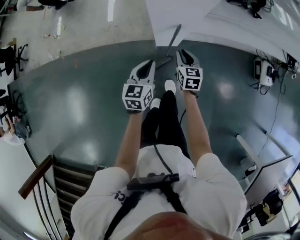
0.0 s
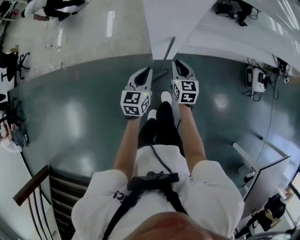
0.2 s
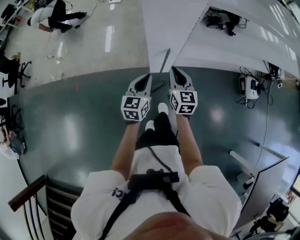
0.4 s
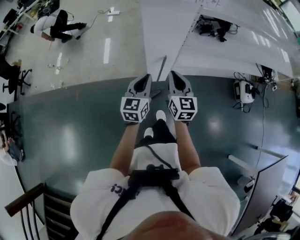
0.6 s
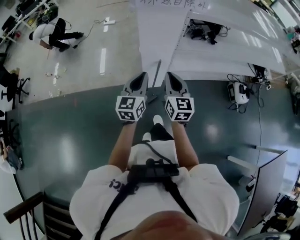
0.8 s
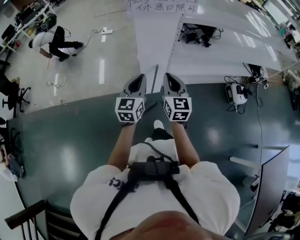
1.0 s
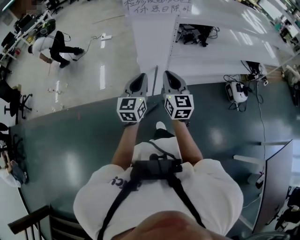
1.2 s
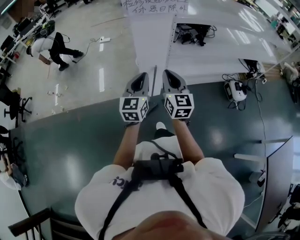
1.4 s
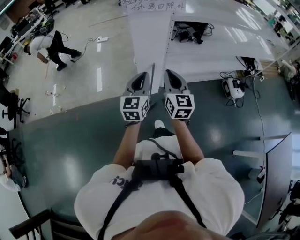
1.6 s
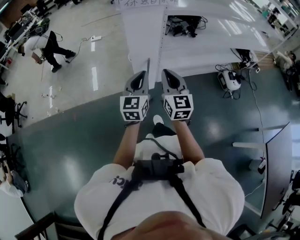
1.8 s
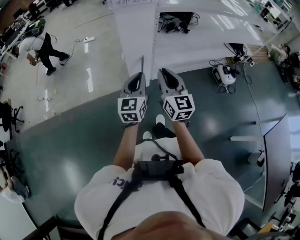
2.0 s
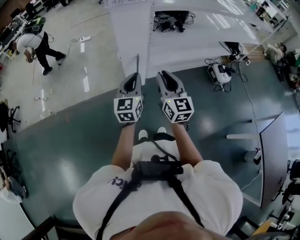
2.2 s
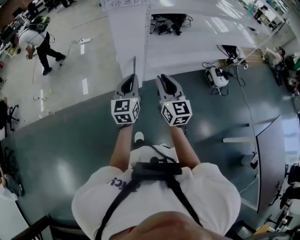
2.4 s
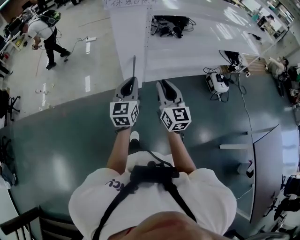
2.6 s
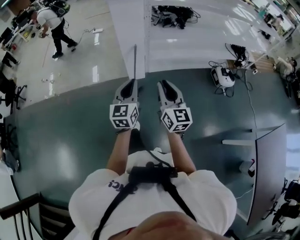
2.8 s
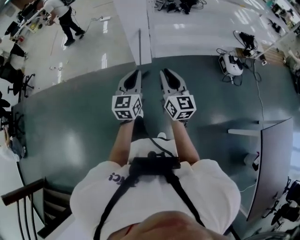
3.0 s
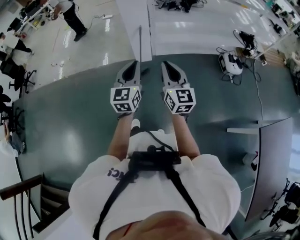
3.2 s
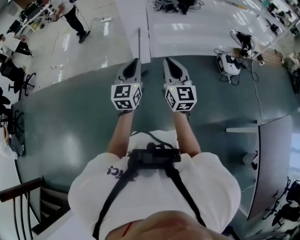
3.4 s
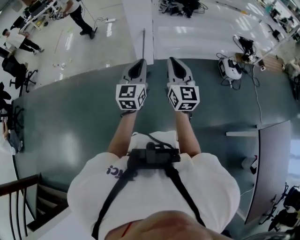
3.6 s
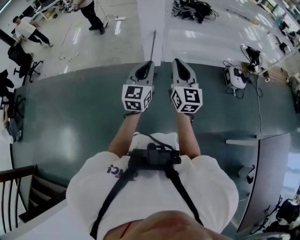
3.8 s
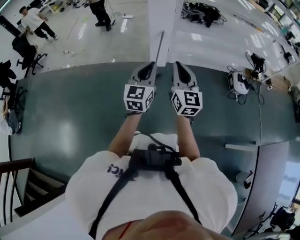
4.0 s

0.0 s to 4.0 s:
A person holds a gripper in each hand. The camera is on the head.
0.0 to 1.4 s: The right gripper shifts approximately 40 cm upward and backward, and tilts its fingers about 30 degrees upward, while the left gripper moves upward, approximately 30 cm, and rotates about 30 degrees.
1.4 to 2.6 s: The two grippers go some 20 cm backward and to the right.
2.6 to 4.0 s: The grippers both shift backward by some 20 cm.

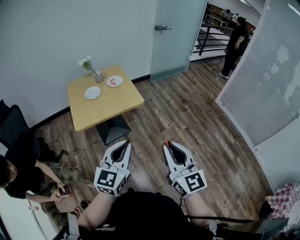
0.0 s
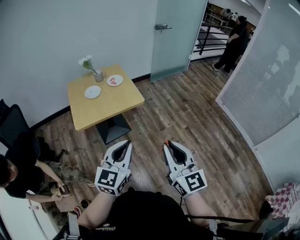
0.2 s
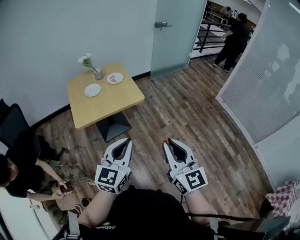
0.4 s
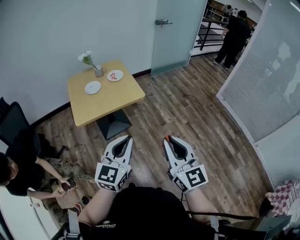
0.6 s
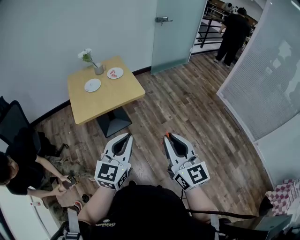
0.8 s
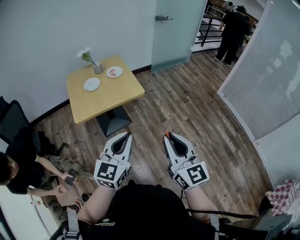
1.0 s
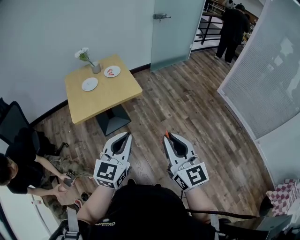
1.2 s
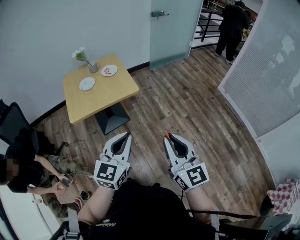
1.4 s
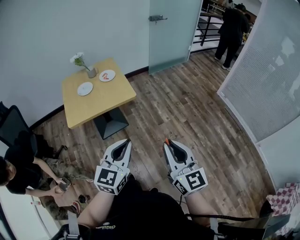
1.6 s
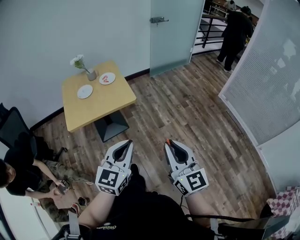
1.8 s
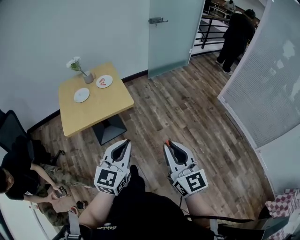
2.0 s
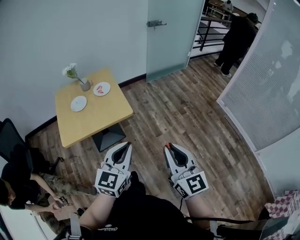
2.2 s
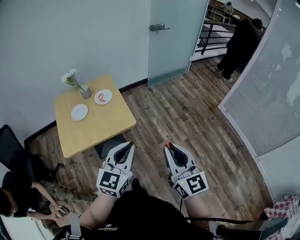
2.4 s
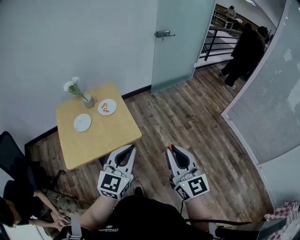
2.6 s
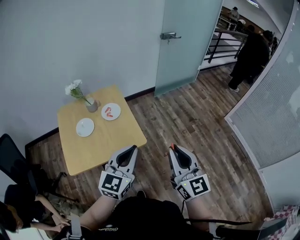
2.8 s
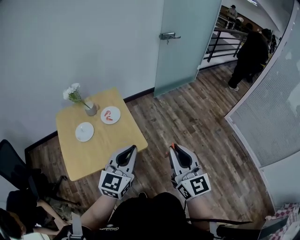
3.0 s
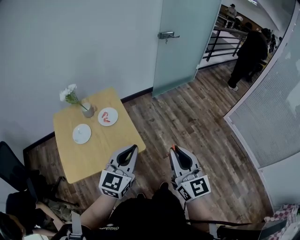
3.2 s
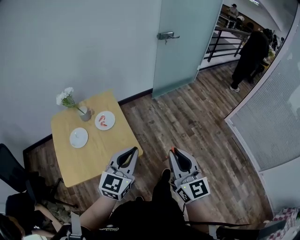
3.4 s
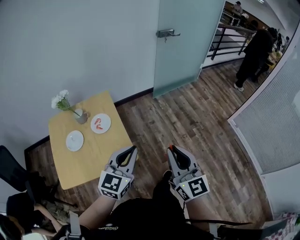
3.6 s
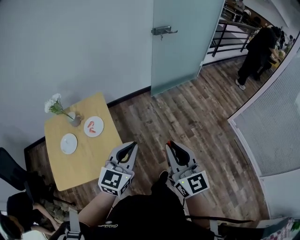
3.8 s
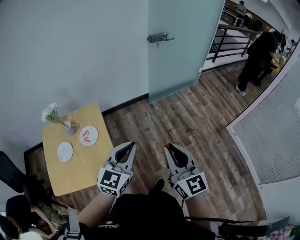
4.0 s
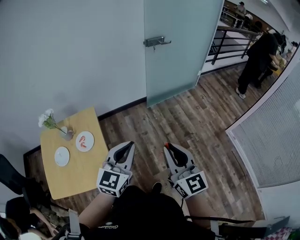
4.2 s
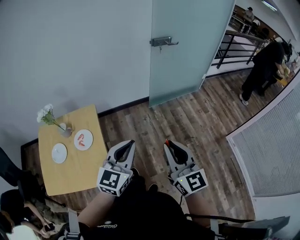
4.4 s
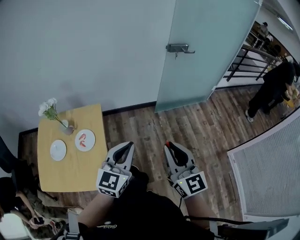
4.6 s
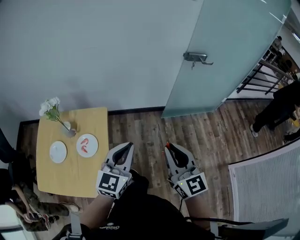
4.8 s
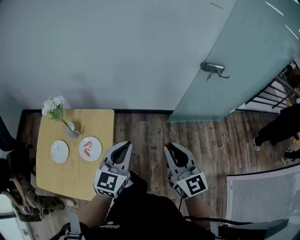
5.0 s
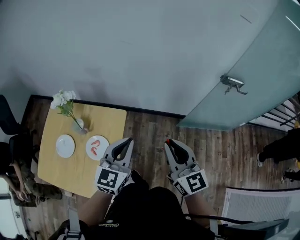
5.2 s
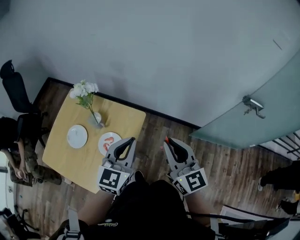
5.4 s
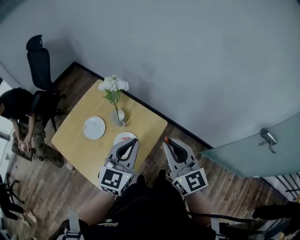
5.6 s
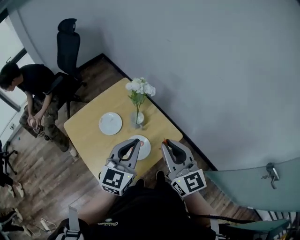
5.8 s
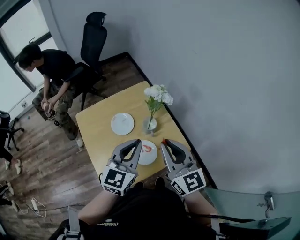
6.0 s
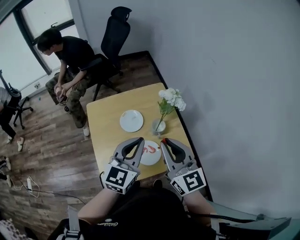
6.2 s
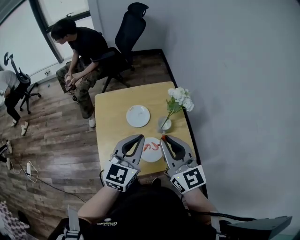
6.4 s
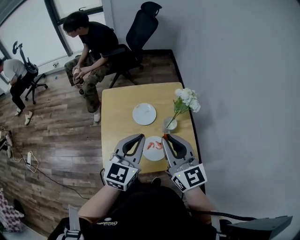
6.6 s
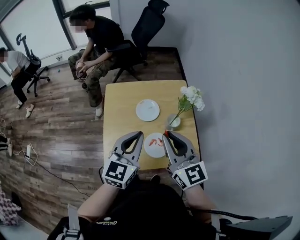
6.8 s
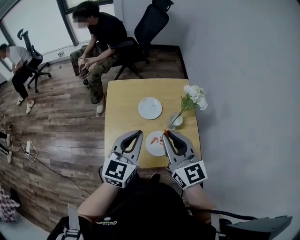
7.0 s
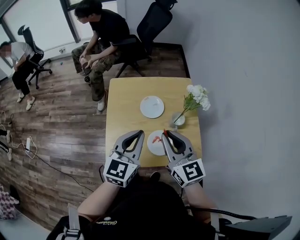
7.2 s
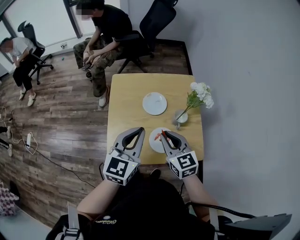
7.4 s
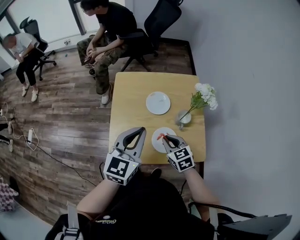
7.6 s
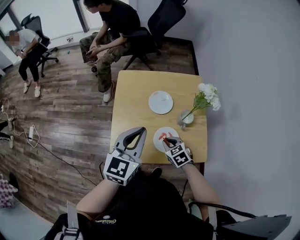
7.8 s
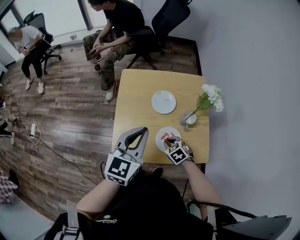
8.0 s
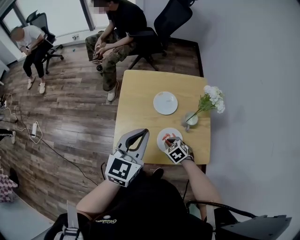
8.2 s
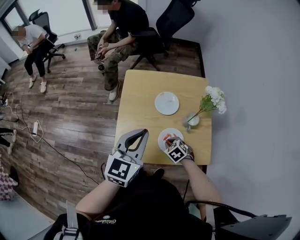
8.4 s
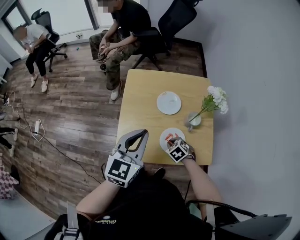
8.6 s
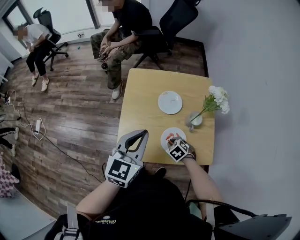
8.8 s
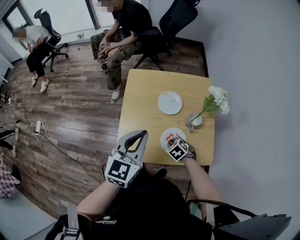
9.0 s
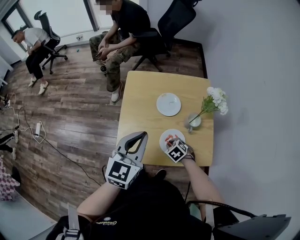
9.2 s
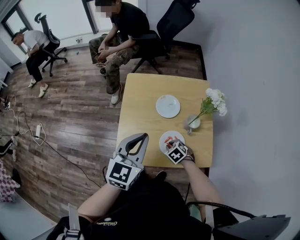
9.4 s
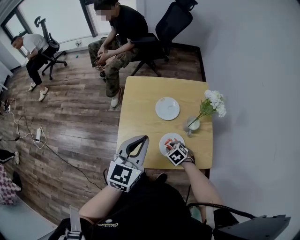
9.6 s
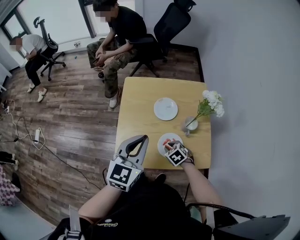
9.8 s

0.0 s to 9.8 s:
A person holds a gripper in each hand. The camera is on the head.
0.0 to 1.4 s: The two grippers go about 5 cm to the right.
1.4 to 2.8 s: The two grippers go roughly 35 cm forward.
2.8 to 4.2 s: Both grippers move forward and to the right, approximately 35 cm.
4.2 to 5.6 s: The right gripper shifts by approximately 50 cm, and rotates approximately 60 degrees; the left gripper changes place by approximately 40 cm, and swivels approximately 60 degrees.
5.6 to 7.0 s: The right gripper shifts by about 20 cm, and swivels approximately 50 degrees; the left gripper ends up about 15 cm from where it was, and rotates some 50 degrees.
7.0 to 8.4 s: The right gripper goes about 35 cm downward, and tilts its fingers roughly 60 degrees downward.
8.4 to 9.8 s: The grippers stay close to where they were, moving slightly.

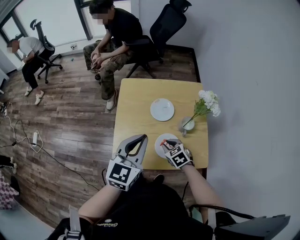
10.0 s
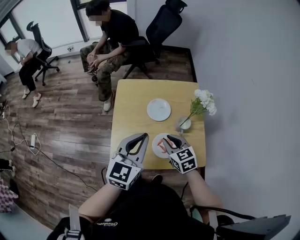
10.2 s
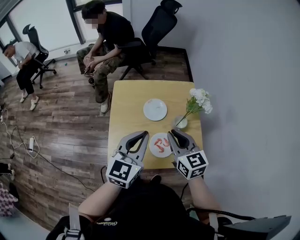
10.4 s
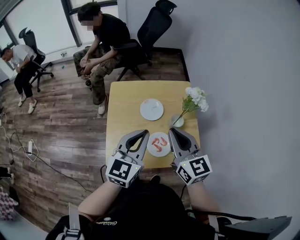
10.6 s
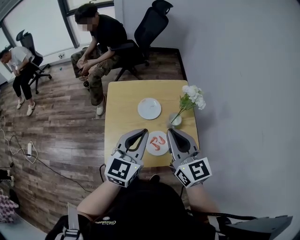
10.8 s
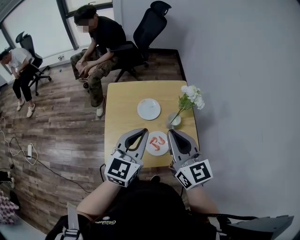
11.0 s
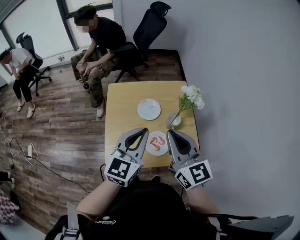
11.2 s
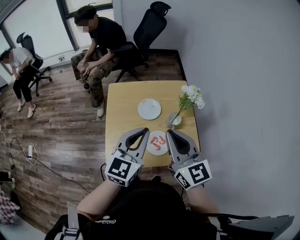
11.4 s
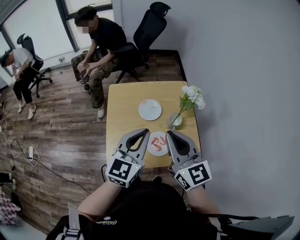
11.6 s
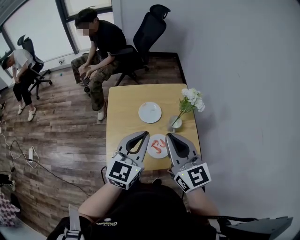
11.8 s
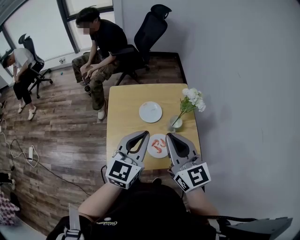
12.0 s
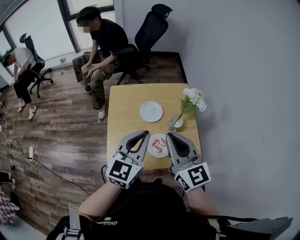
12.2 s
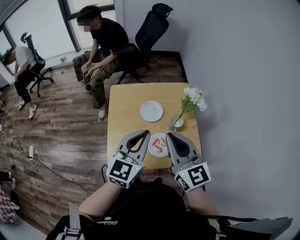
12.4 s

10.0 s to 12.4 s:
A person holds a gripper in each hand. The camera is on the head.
10.0 to 11.2 s: The left gripper goes some 5 cm upward. The right gripper travels upward by roughly 35 cm, and tilts its fingers about 50 degrees upward.
11.2 to 12.4 s: The grippers make only small movements.

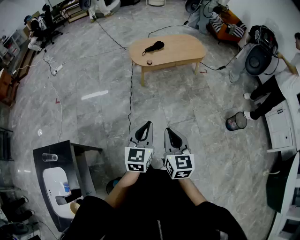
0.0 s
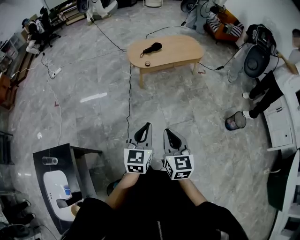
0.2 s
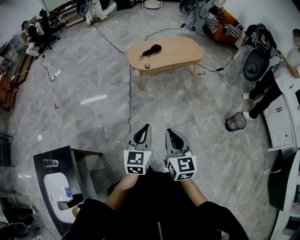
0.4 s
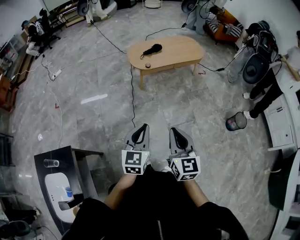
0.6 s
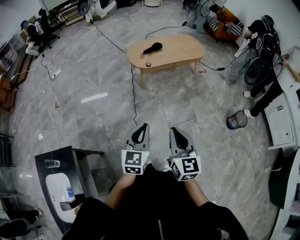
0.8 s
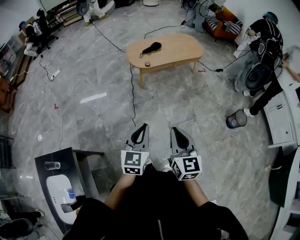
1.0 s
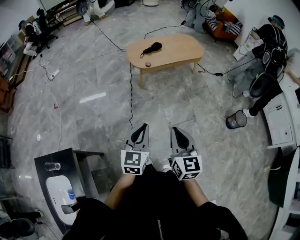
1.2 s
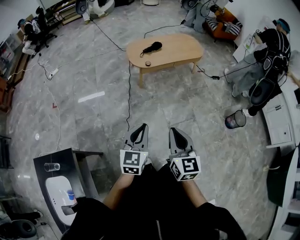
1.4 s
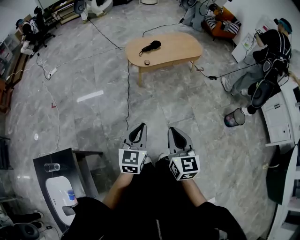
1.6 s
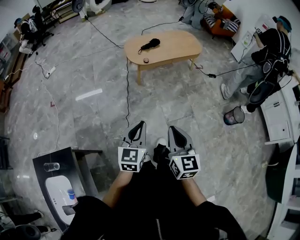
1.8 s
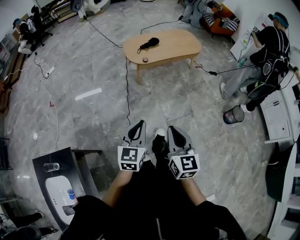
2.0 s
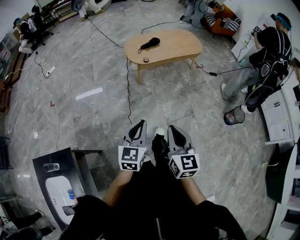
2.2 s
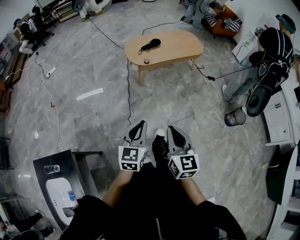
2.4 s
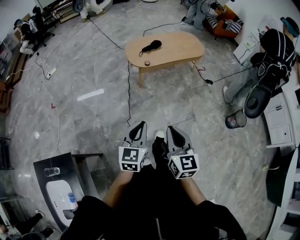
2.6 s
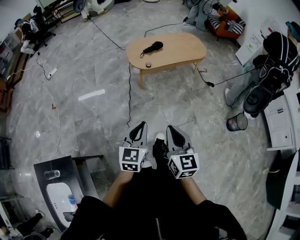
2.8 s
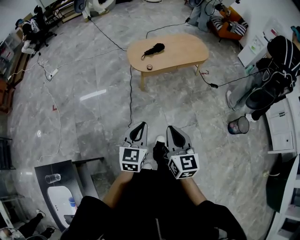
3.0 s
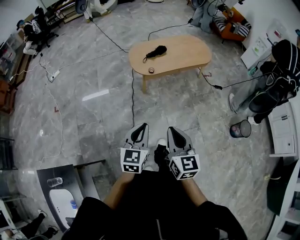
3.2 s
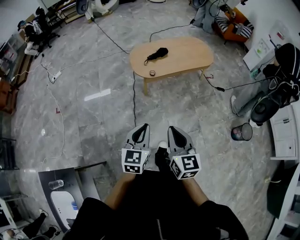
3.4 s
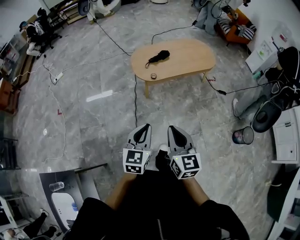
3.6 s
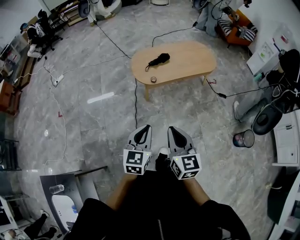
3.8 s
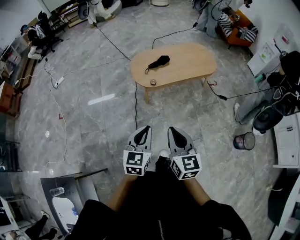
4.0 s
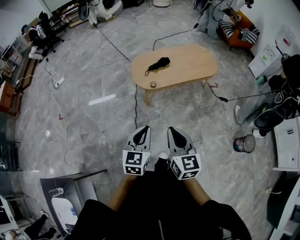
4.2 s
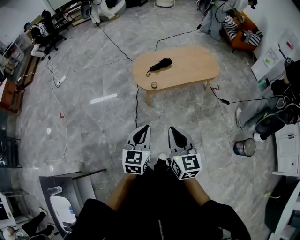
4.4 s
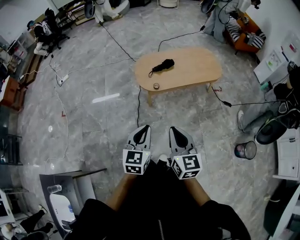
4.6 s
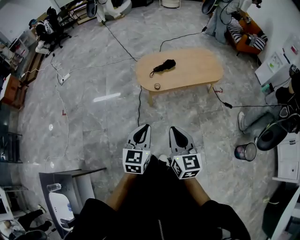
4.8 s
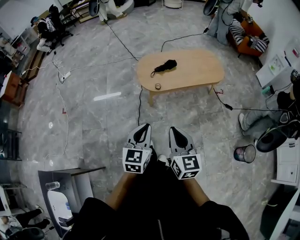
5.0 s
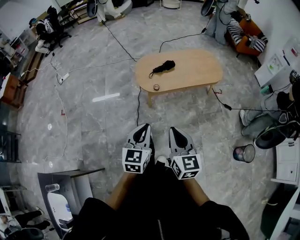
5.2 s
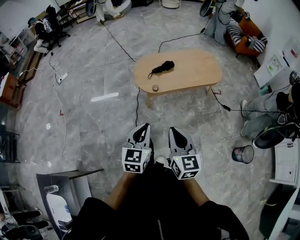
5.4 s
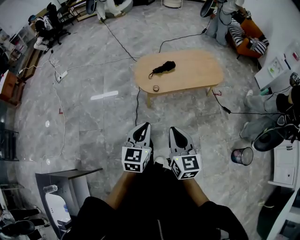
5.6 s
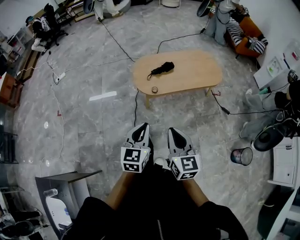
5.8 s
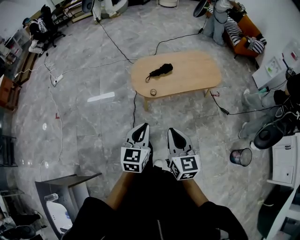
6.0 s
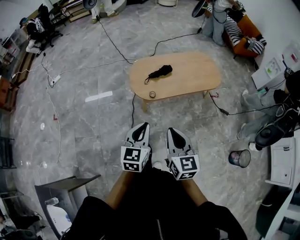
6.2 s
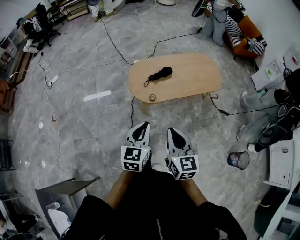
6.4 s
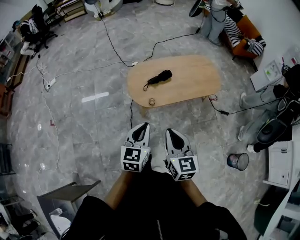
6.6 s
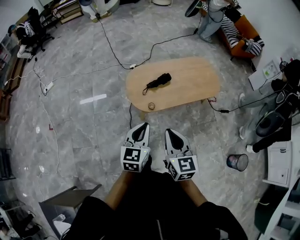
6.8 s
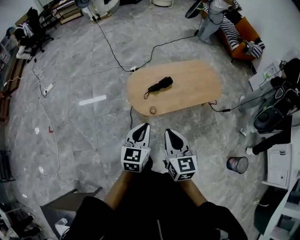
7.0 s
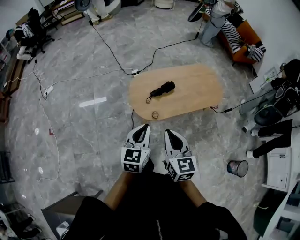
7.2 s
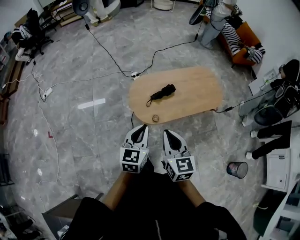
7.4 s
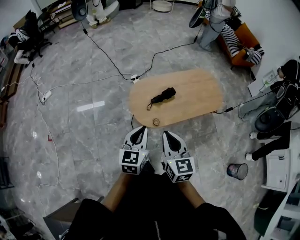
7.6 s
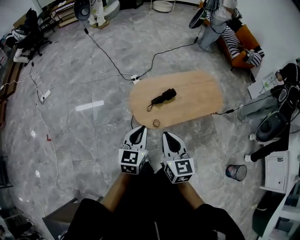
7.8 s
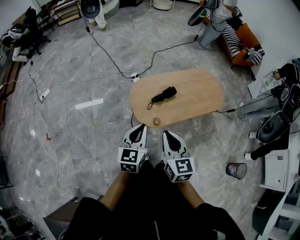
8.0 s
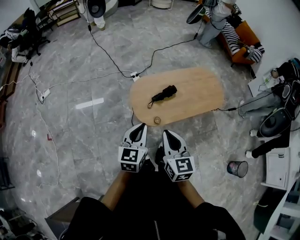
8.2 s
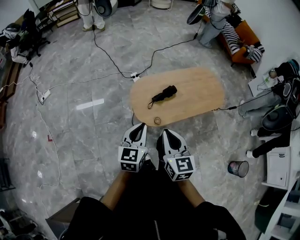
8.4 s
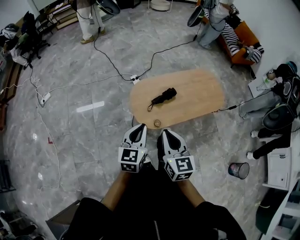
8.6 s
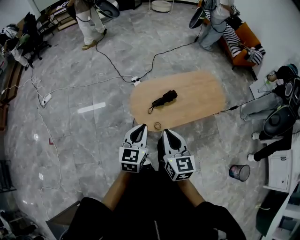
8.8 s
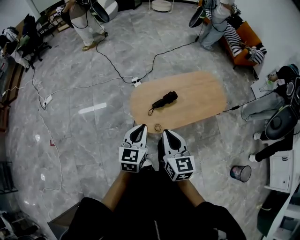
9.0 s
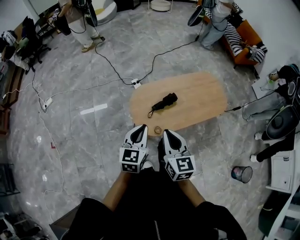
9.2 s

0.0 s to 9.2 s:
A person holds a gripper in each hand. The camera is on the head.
0.0 to 1.6 s: The left gripper heads to the left, covering roughly 5 cm.
1.6 to 3.0 s: The grippers both shift forward by about 10 cm.
3.0 to 4.6 s: The two grippers go about 20 cm forward.
4.6 to 6.2 s: Both grippers move forward, about 10 cm.
6.2 to 7.6 s: The two grippers go roughly 25 cm forward and to the left.
7.6 to 9.2 s: The two grippers go about 10 cm forward.
